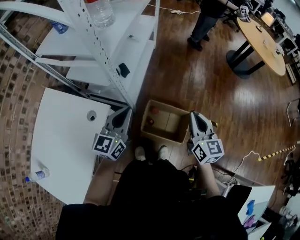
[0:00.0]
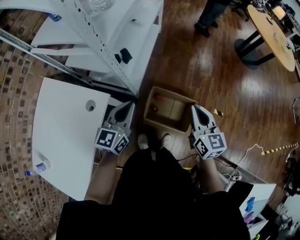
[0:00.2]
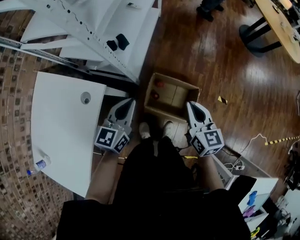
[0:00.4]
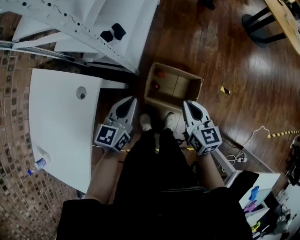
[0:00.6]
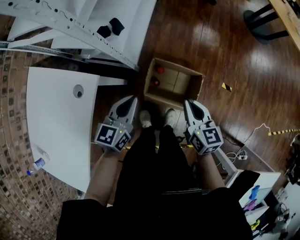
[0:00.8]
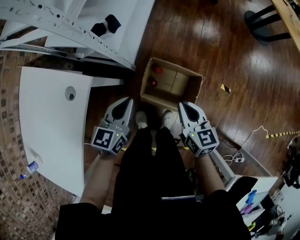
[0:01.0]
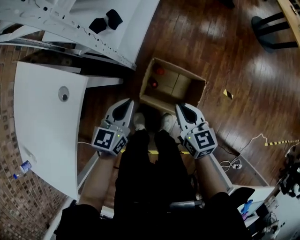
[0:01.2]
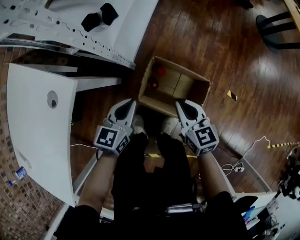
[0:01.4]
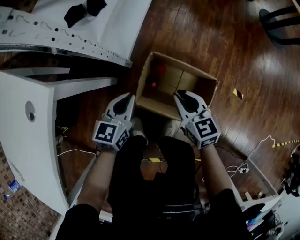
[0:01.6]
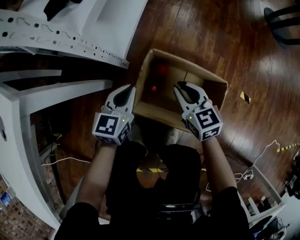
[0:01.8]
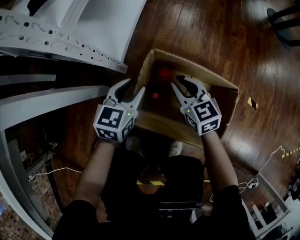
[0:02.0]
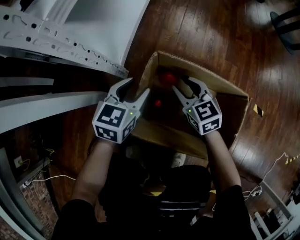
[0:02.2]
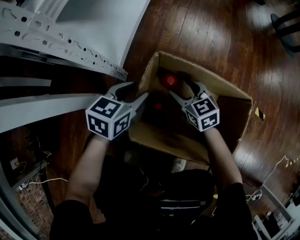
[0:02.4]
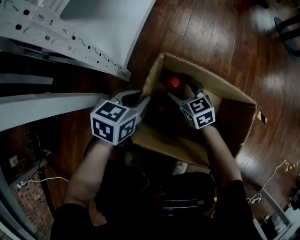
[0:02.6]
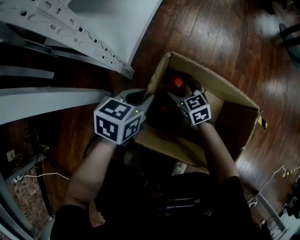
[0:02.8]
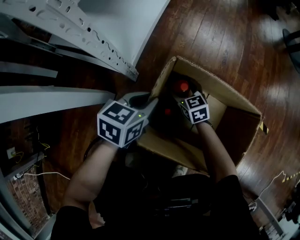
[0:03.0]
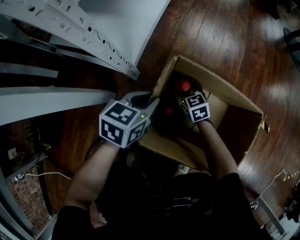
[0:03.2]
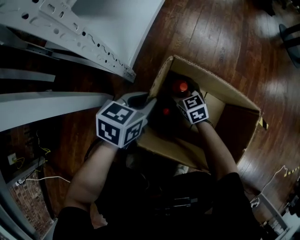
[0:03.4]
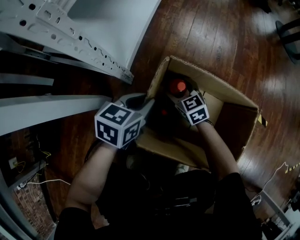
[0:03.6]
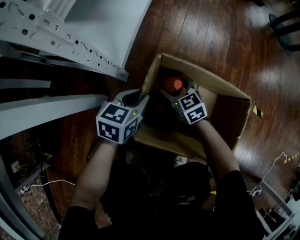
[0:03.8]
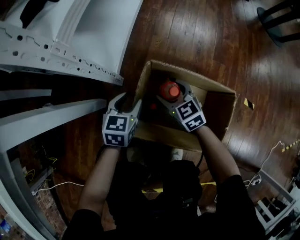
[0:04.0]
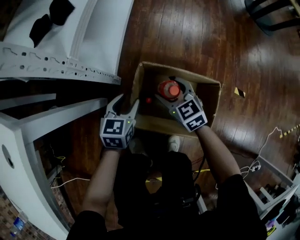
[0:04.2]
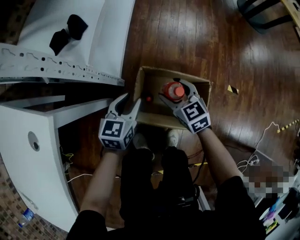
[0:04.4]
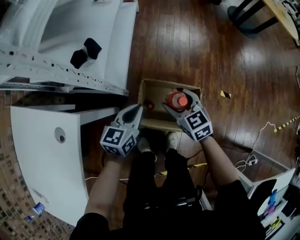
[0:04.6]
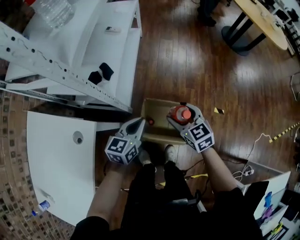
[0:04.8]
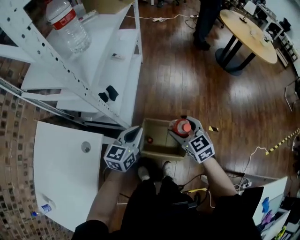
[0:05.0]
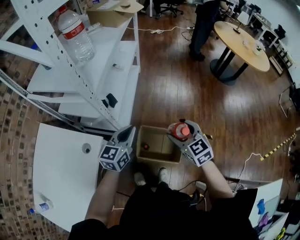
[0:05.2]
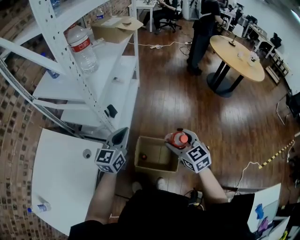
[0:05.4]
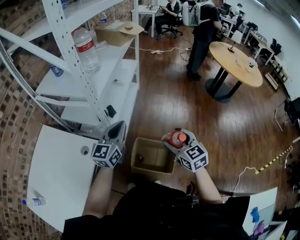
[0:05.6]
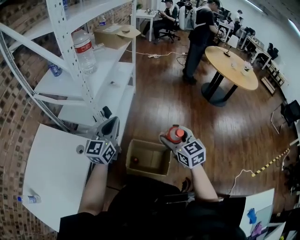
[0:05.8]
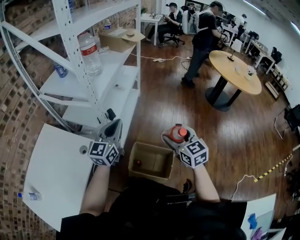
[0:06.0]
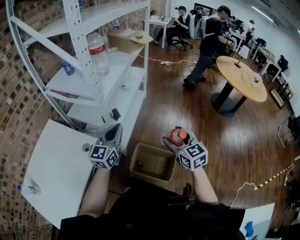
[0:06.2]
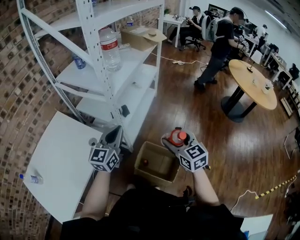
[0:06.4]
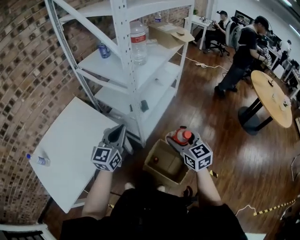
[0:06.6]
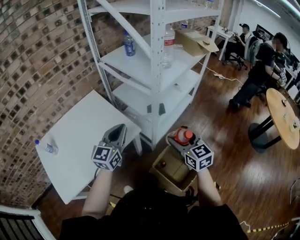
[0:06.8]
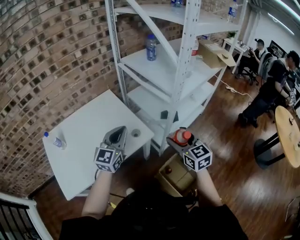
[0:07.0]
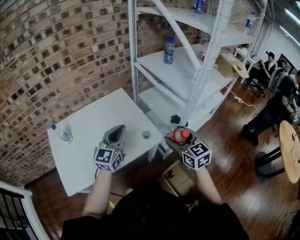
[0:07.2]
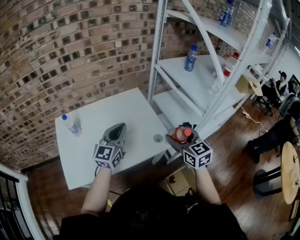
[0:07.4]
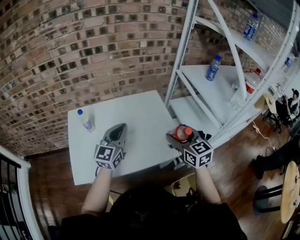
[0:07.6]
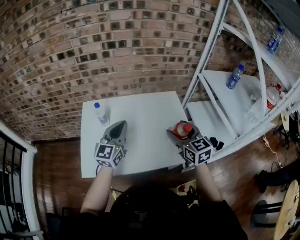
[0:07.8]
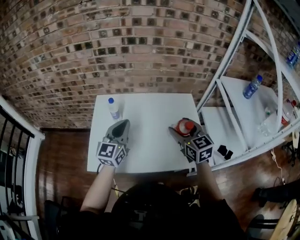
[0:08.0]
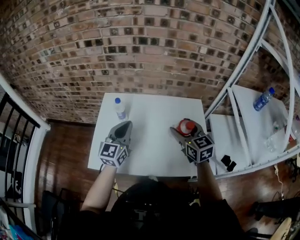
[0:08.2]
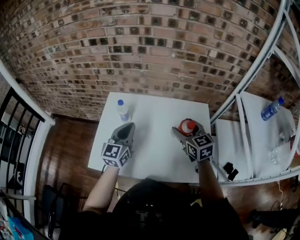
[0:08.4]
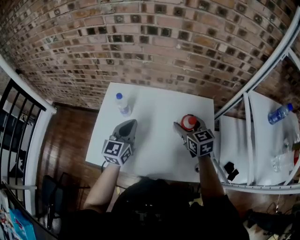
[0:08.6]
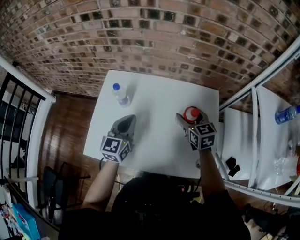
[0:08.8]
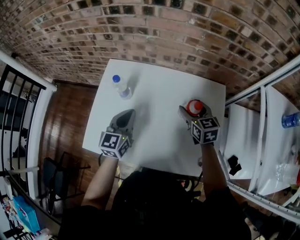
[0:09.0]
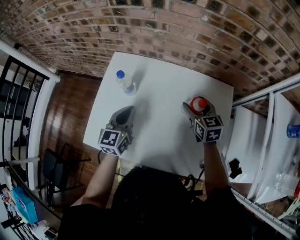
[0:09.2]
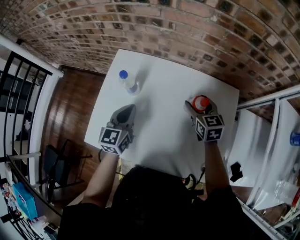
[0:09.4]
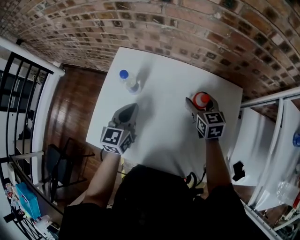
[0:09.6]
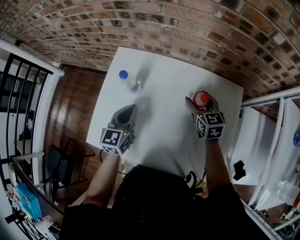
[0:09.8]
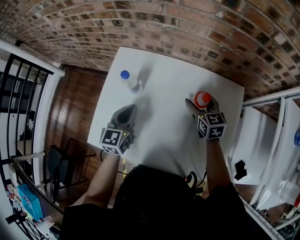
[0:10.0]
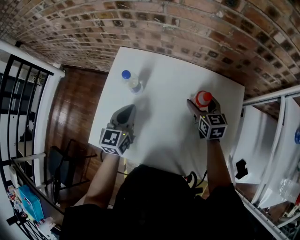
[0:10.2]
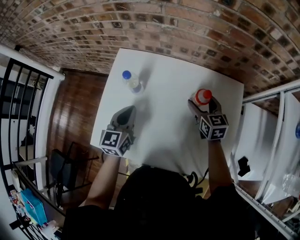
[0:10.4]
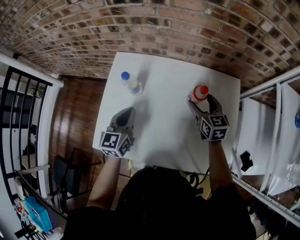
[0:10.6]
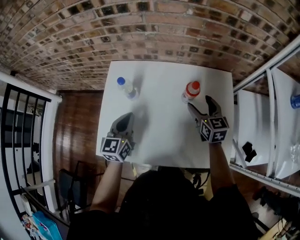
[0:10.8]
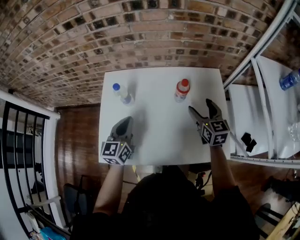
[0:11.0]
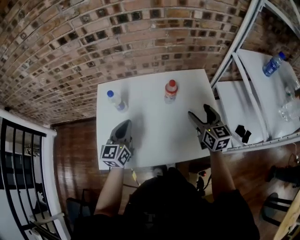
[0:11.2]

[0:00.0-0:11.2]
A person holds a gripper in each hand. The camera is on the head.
0.0 to 1.6 s: Both grippers move downward, roughly 40 cm. The right gripper changes its angle by some 30 degrees, while the left gripper turns by about 20 degrees.
1.6 to 3.2 s: The right gripper shifts about 40 cm downward, and opens its fingers, while the left gripper is displaced downward by some 30 cm, and opens, then closes once more.
3.2 to 4.8 s: The grippers both shift upward by roughly 60 cm. The left gripper opens and closes again.
4.8 to 6.4 s: Both grippers travel together upward, about 25 cm. The left gripper changes its angle by about 40 degrees.
6.4 to 8.0 s: The two grippers travel together, about 60 cm. The left gripper swivels some 60 degrees. The right gripper swivels about 60 degrees.
8.0 to 9.6 s: The right gripper moves forward and downward, some 30 cm. Meanwhile the left gripper shifts approximately 20 cm downward and forward, and changes its angle by some 30 degrees.
9.6 to 11.2 s: The left gripper shifts some 10 cm backward and upward; the right gripper moves backward and upward, approximately 20 cm, and swivels some 30 degrees.

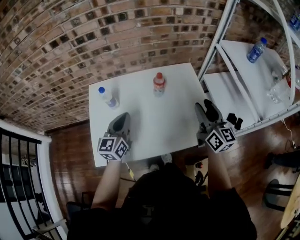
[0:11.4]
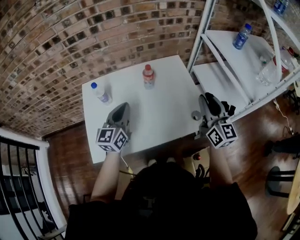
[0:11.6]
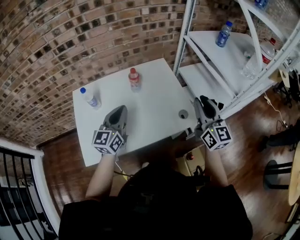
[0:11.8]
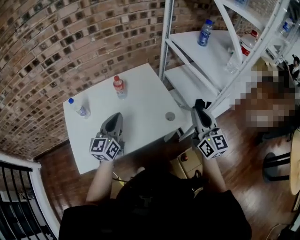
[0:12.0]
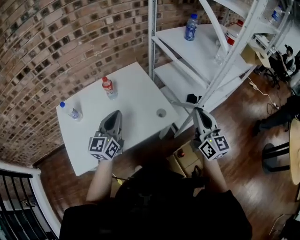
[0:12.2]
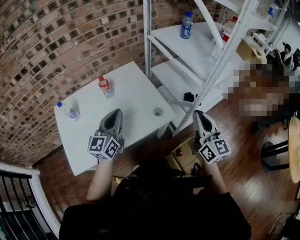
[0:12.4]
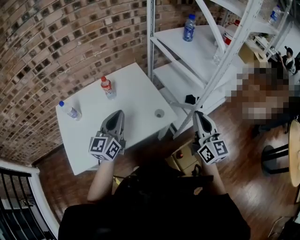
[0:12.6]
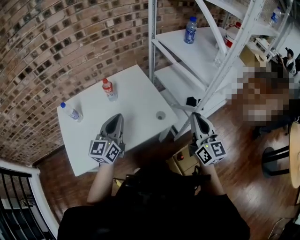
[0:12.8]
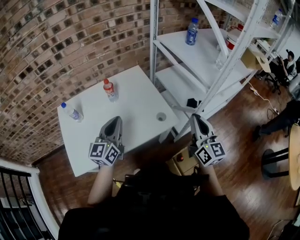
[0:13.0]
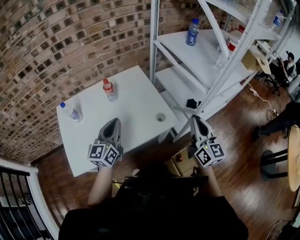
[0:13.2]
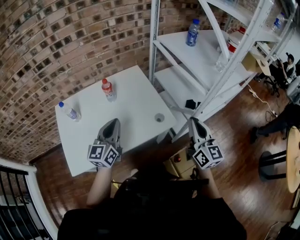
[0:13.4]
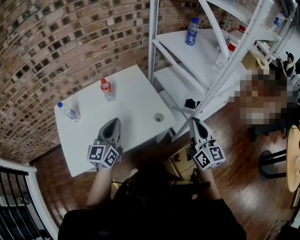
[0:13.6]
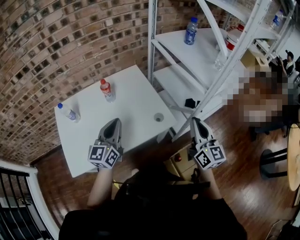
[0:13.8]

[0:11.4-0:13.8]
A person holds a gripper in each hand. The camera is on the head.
11.4 to 12.6 s: The right gripper heads to the right and backward, covering roughly 30 cm, turns by roughly 20 degrees, and closes its fingers; the left gripper moves to the right, roughly 20 cm, and swivels roughly 20 degrees.
12.6 to 13.8 s: The grippers move only a little.

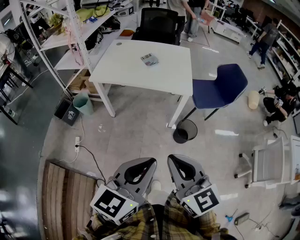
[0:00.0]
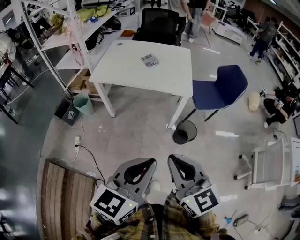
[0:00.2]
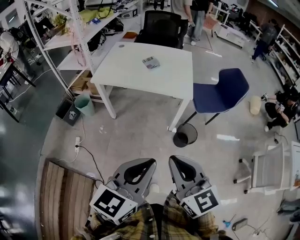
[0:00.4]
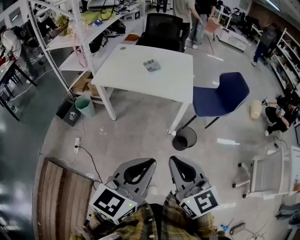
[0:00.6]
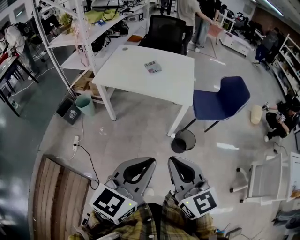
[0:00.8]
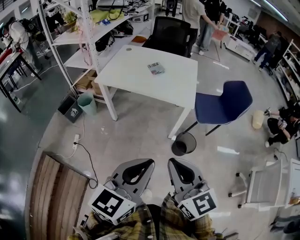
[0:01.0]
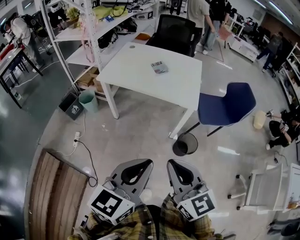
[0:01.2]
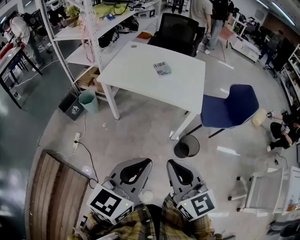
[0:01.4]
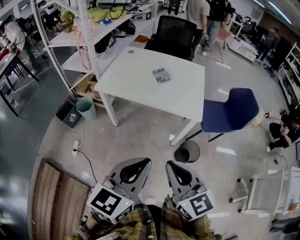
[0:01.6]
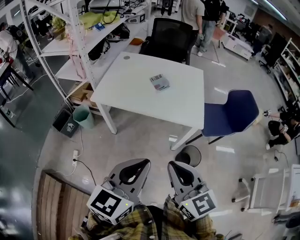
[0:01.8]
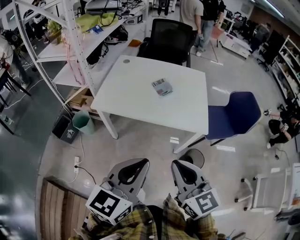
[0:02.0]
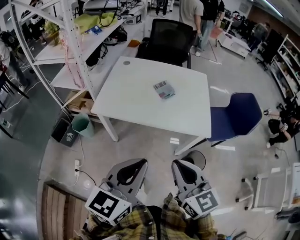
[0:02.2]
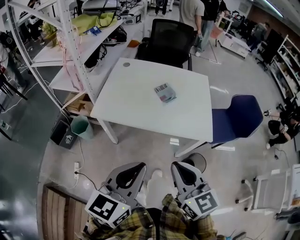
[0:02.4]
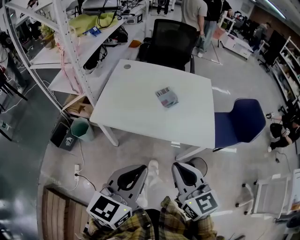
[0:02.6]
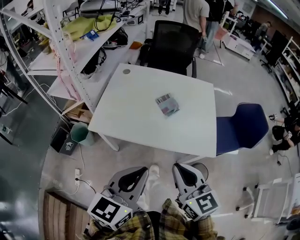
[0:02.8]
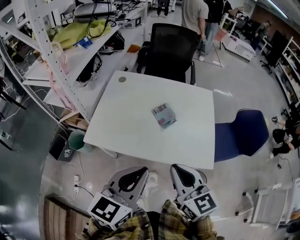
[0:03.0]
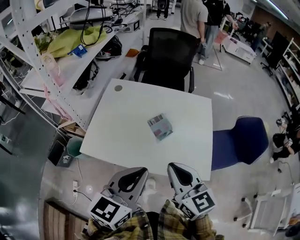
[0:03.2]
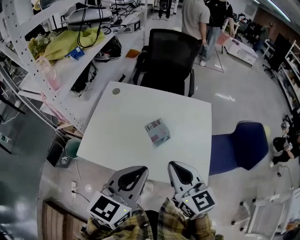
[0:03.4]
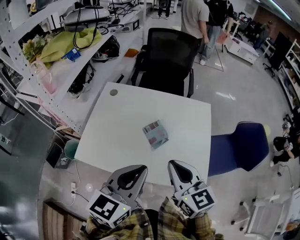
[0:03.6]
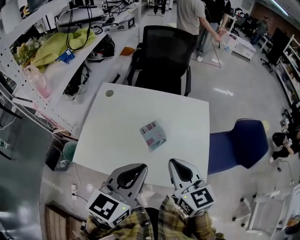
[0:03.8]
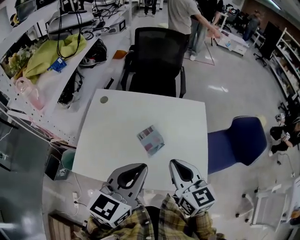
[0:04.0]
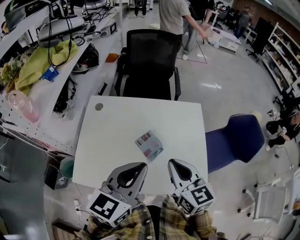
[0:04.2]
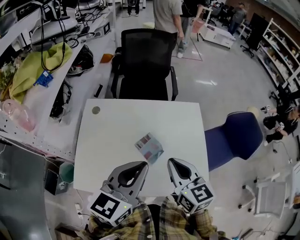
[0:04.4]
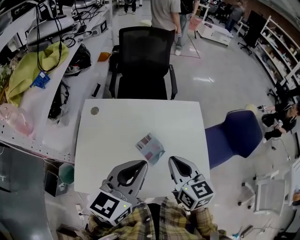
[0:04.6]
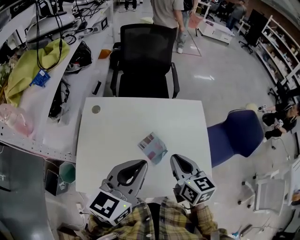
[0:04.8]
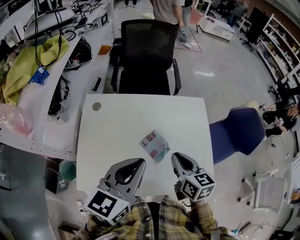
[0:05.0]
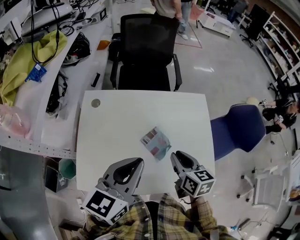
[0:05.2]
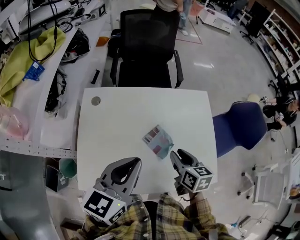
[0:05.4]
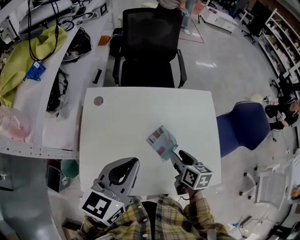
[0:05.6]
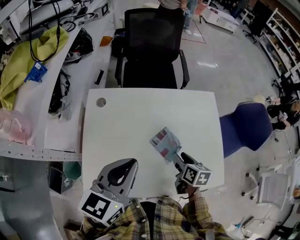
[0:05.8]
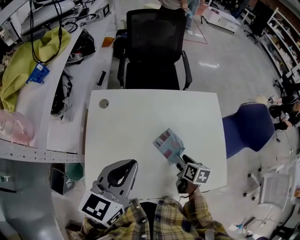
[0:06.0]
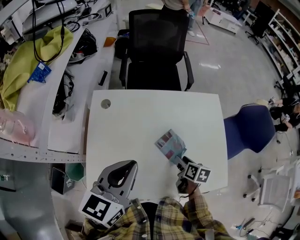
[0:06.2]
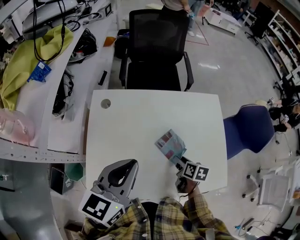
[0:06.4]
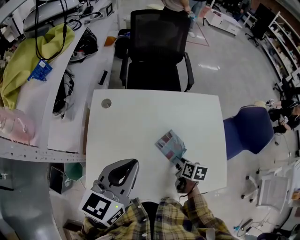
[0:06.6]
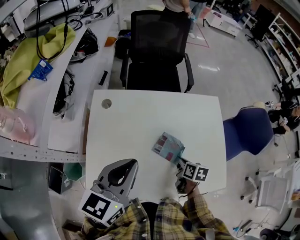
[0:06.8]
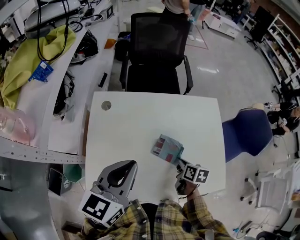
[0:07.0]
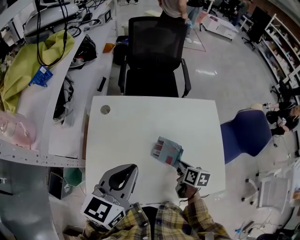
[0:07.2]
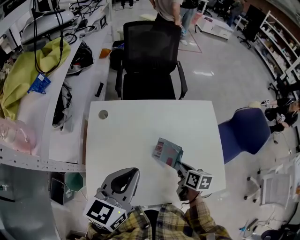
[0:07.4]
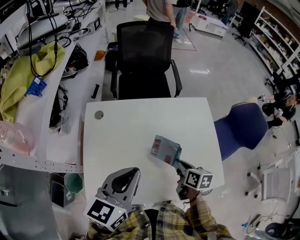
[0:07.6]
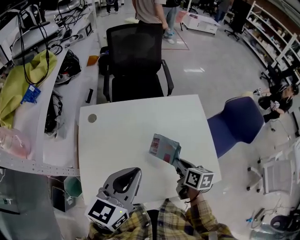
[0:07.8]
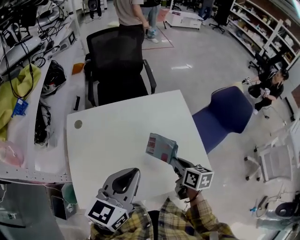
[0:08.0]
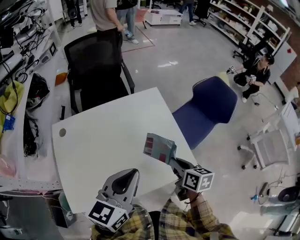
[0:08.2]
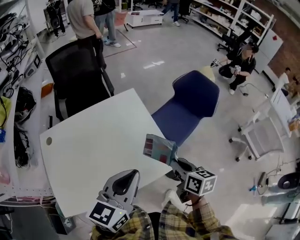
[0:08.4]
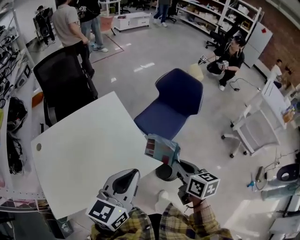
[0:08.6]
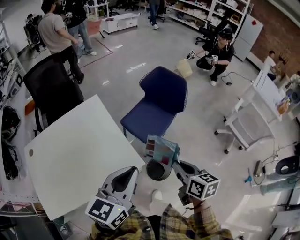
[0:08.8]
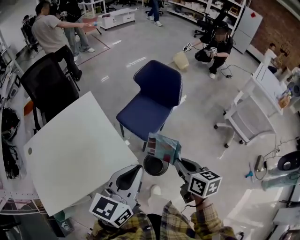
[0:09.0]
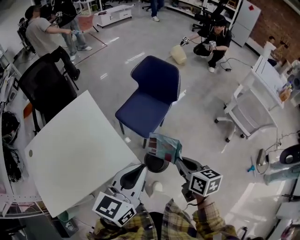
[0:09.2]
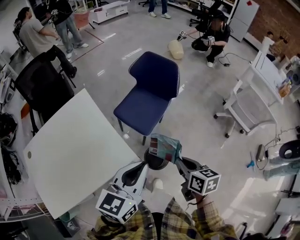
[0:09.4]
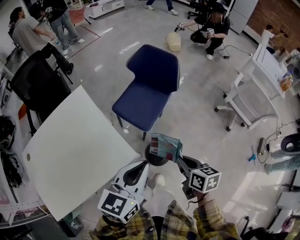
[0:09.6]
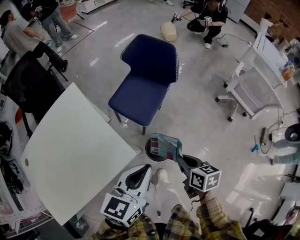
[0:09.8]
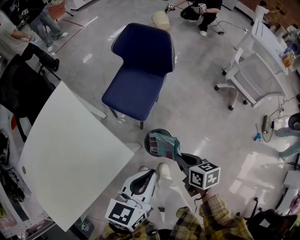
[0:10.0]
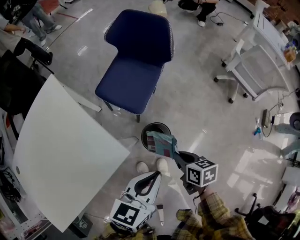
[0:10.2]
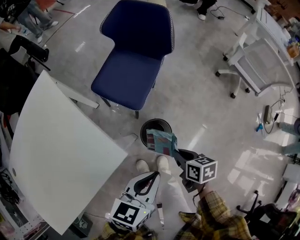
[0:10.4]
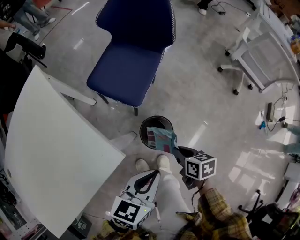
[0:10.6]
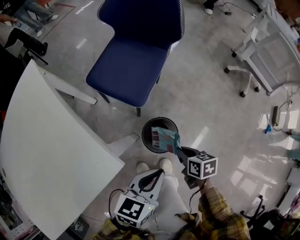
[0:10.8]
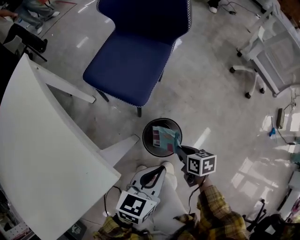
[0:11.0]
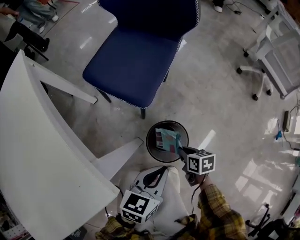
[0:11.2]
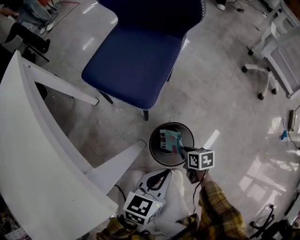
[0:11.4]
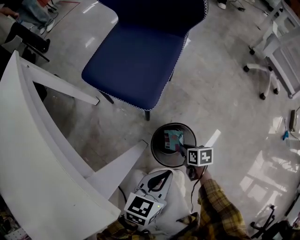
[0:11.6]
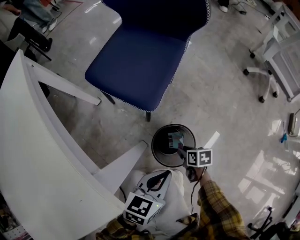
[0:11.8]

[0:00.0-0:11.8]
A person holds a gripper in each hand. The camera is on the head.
0.0 to 1.4 s: Both grippers travel together forward, approximately 10 cm.
1.4 to 3.0 s: Both grippers are carried forward, approximately 40 cm.
3.0 to 4.4 s: Both grippers travel together forward, approximately 25 cm.
4.4 to 6.0 s: The right gripper moves downward, roughly 25 cm, rotates some 40 degrees, and opens up. The left gripper travels to the left and downward by roughly 15 cm.
6.0 to 7.4 s: The right gripper closes up.
7.4 to 8.8 s: The two grippers travel together, some 50 cm. The right gripper swivels roughly 30 degrees. Meanwhile the left gripper turns by about 30 degrees.
8.8 to 10.4 s: The right gripper travels downward by approximately 30 cm, and rotates approximately 30 degrees. Meanwhile the left gripper is displaced downward and to the right by approximately 30 cm, and swivels some 30 degrees.
10.4 to 11.8 s: Both grippers move downward, about 35 cm. The right gripper opens.
